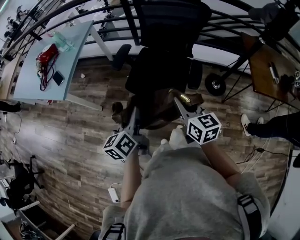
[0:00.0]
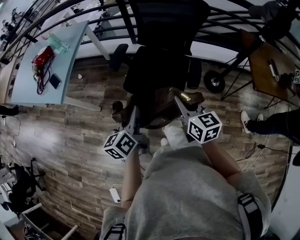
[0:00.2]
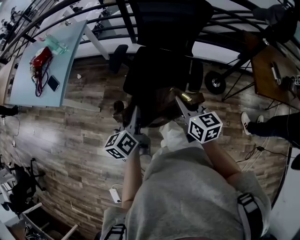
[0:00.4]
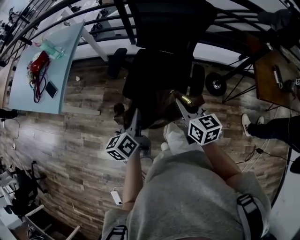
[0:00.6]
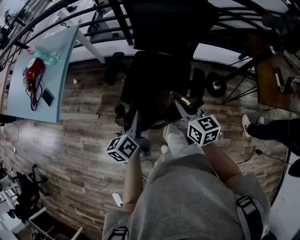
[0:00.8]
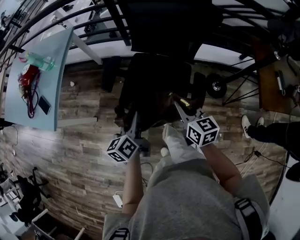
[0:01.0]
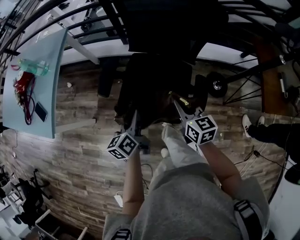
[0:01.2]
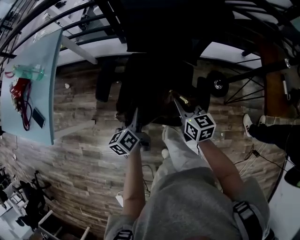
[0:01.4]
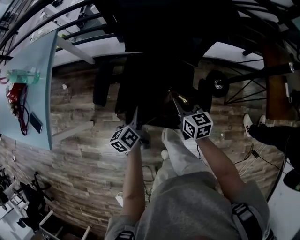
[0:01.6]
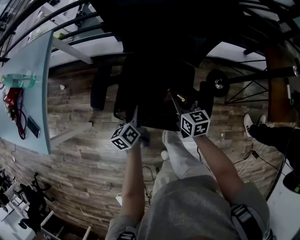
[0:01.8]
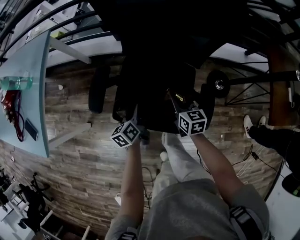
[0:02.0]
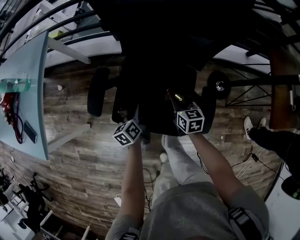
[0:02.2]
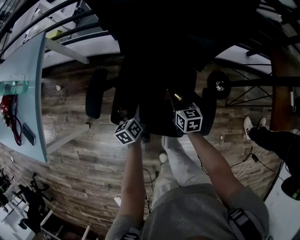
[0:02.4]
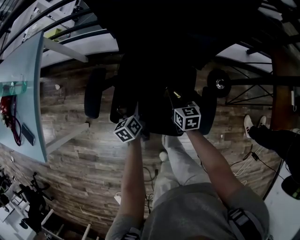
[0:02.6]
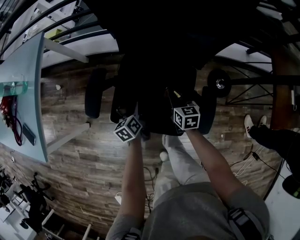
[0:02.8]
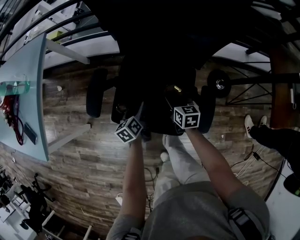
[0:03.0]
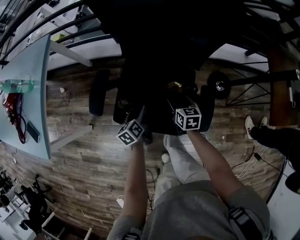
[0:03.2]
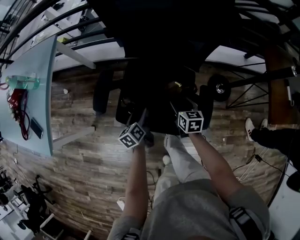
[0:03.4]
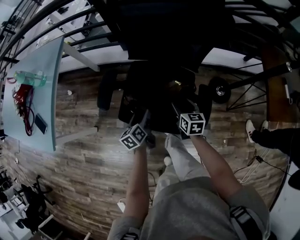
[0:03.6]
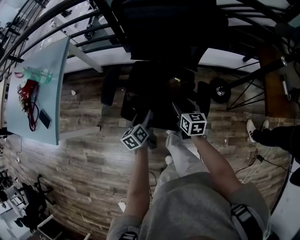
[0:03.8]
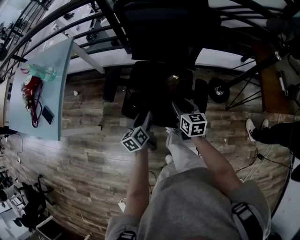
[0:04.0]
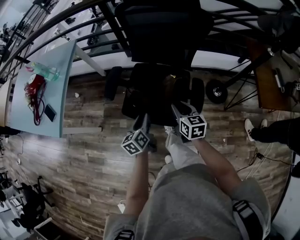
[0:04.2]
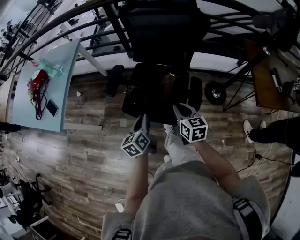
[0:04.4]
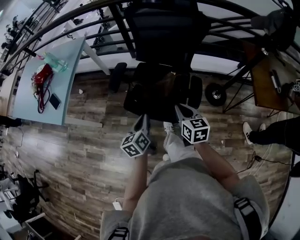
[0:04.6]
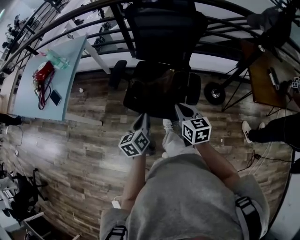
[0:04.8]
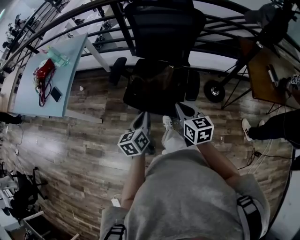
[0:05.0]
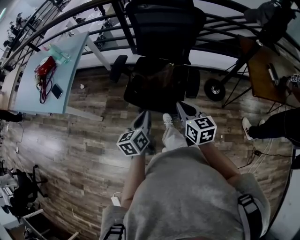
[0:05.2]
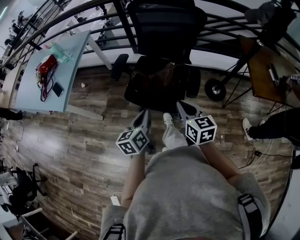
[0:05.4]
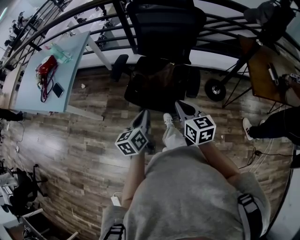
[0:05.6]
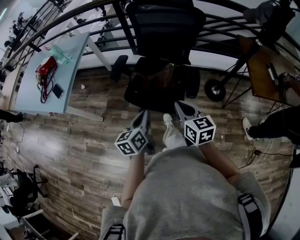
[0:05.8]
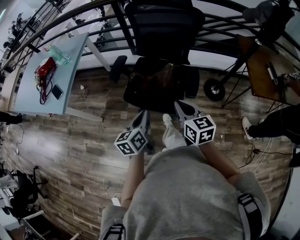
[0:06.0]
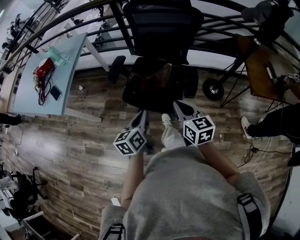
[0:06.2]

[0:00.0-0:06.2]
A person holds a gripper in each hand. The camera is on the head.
0:00.0 to 0:01.6: Both grippers travel together forward and downward, some 35 cm.
0:01.6 to 0:03.2: Both grippers move downward, approximately 10 cm. The left gripper opens. Meanwhile the right gripper opens.
0:03.2 to 0:04.6: The two grippers go some 30 cm upward and backward. The left gripper closes. Meanwhile the right gripper closes its fingers.
0:04.6 to 0:06.2: The two grippers go some 10 cm backward and upward.

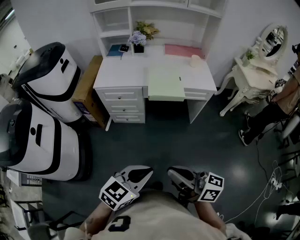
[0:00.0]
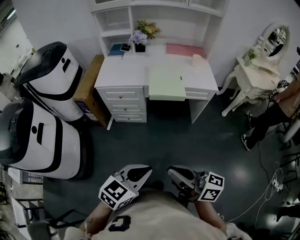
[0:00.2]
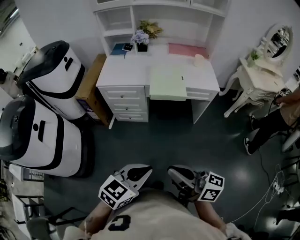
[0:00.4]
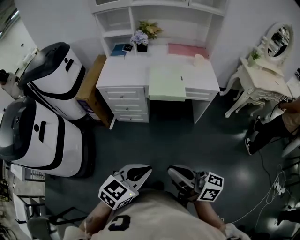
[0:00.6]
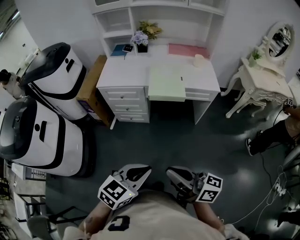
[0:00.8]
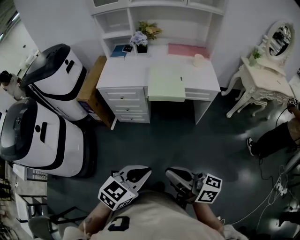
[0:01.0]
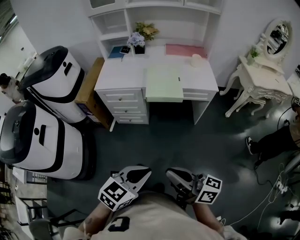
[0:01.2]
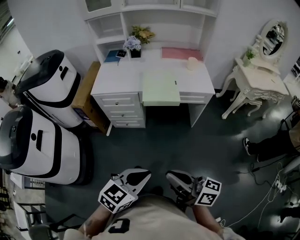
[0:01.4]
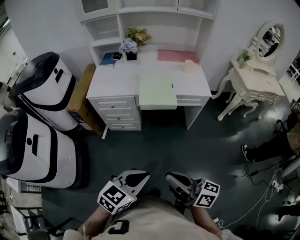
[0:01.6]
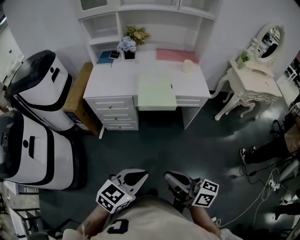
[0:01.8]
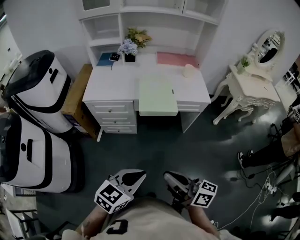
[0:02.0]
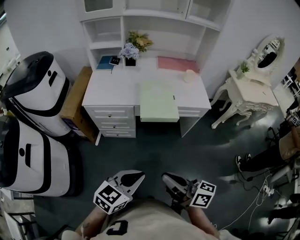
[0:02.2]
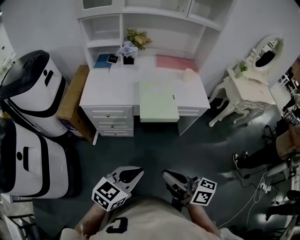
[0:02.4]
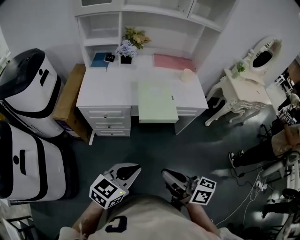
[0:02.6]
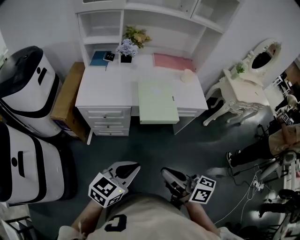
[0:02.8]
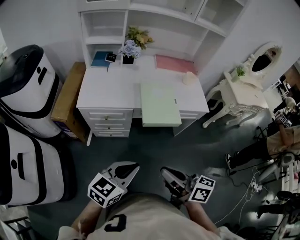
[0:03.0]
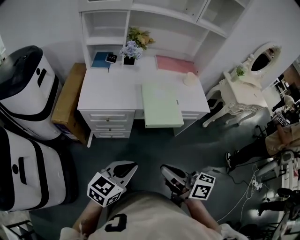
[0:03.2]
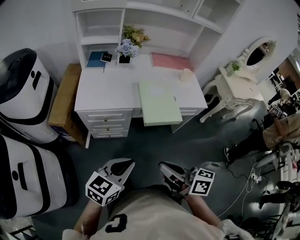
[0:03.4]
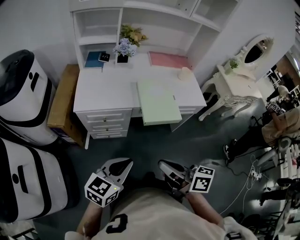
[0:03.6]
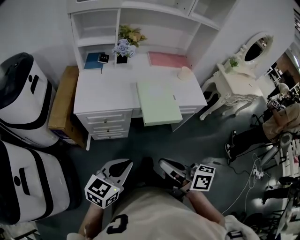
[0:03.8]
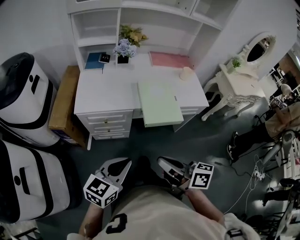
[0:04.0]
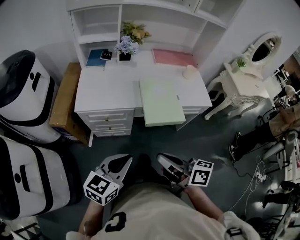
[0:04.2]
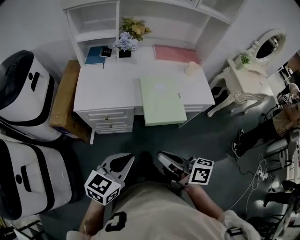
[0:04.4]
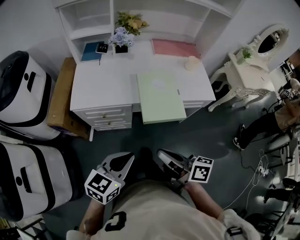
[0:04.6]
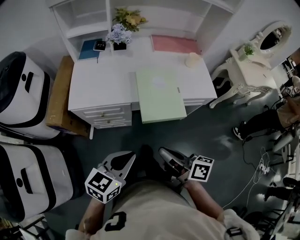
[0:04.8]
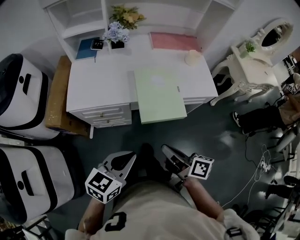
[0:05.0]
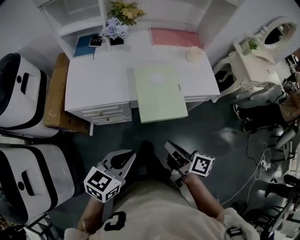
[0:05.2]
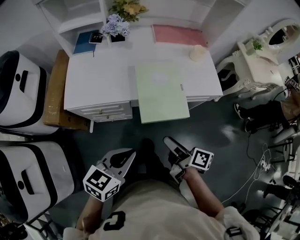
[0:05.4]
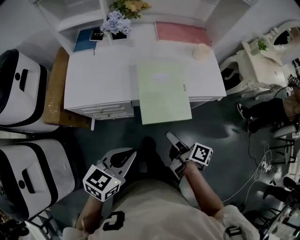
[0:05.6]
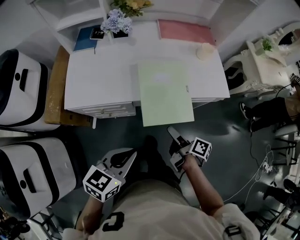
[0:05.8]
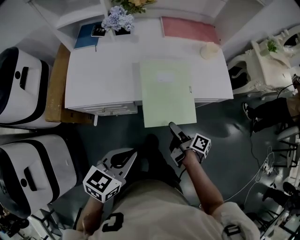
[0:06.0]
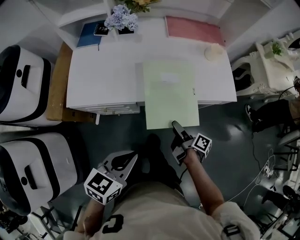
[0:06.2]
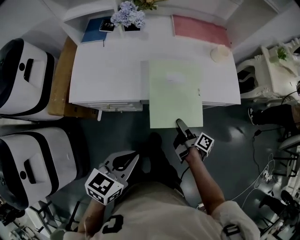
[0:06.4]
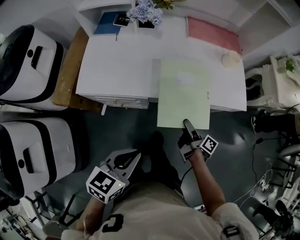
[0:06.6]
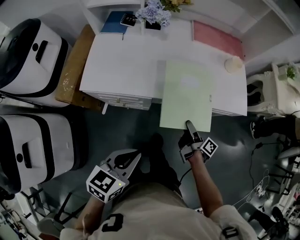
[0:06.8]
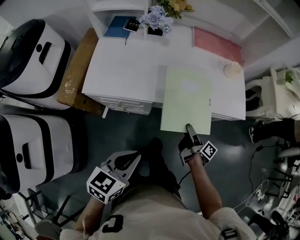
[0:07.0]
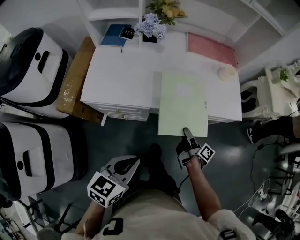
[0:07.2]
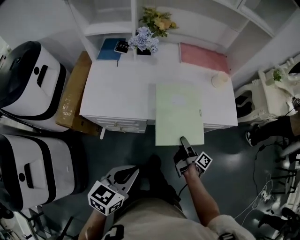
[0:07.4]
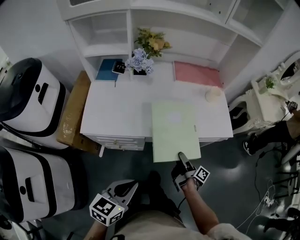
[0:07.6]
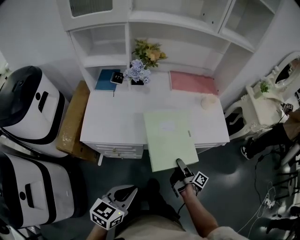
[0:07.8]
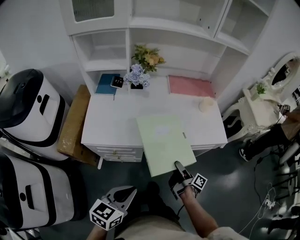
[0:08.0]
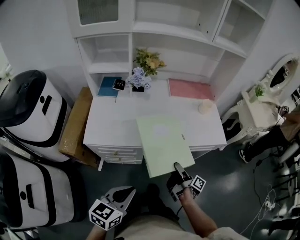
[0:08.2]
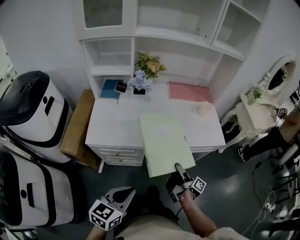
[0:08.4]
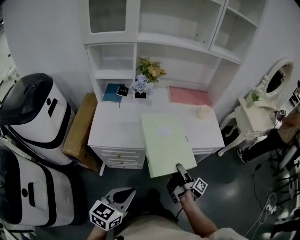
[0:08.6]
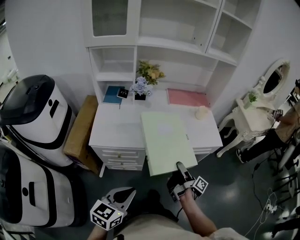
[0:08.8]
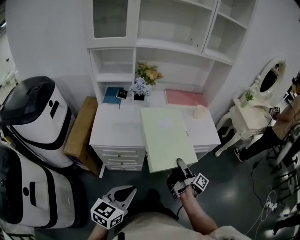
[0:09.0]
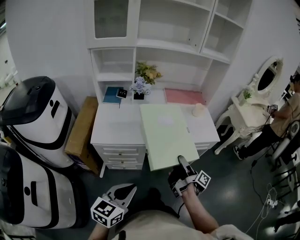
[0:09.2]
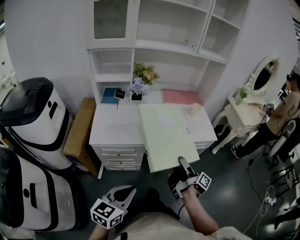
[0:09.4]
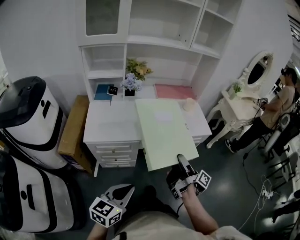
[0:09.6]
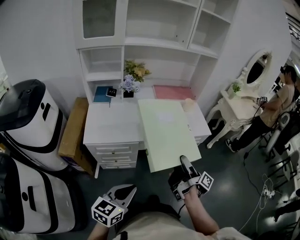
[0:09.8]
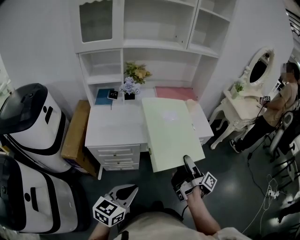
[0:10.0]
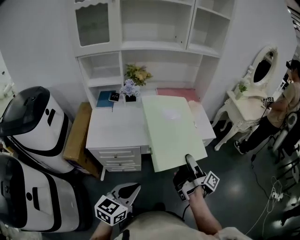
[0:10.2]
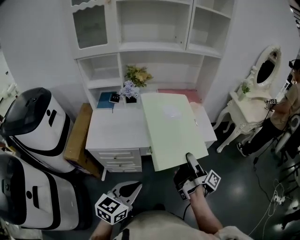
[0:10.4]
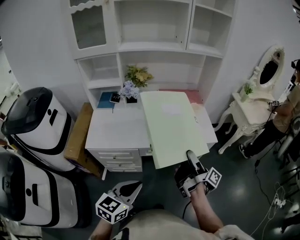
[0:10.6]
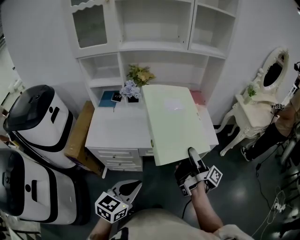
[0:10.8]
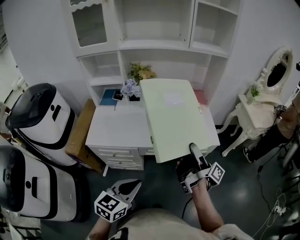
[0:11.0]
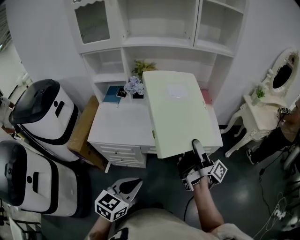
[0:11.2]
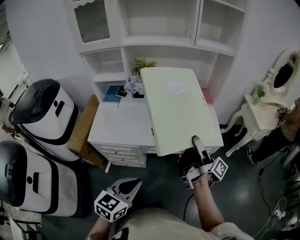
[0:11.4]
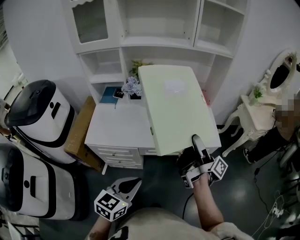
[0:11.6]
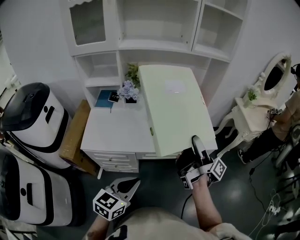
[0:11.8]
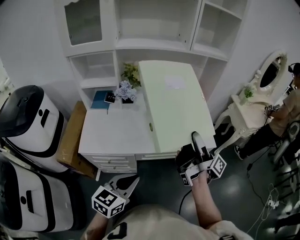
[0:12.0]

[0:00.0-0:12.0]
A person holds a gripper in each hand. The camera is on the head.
0:00.0 to 0:01.6: The right gripper shifts by about 5 cm. Meanwhile the left gripper changes place by roughly 5 cm.
0:01.6 to 0:03.0: Both grippers travel together forward and to the left, roughly 20 cm.
0:03.0 to 0:04.4: Both grippers travel together forward, about 10 cm.
0:04.4 to 0:06.0: The right gripper heads downward, forward and to the right, covering approximately 30 cm, turns by about 40 degrees, and opens its fingers; the left gripper moves forward, about 10 cm.
0:06.0 to 0:07.6: The grippers make only small movements.
0:07.6 to 0:09.0: The right gripper moves upward and backward, roughly 15 cm, while the left gripper is displaced backward and upward by approximately 10 cm.
0:09.0 to 0:10.4: The left gripper is displaced to the right by approximately 5 cm; the right gripper travels upward and to the right by about 10 cm.
0:10.4 to 0:12.0: The left gripper goes roughly 10 cm forward. Meanwhile the right gripper goes some 15 cm forward and upward.

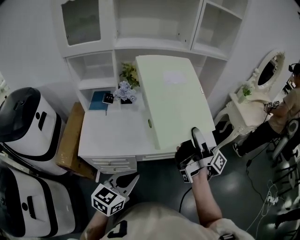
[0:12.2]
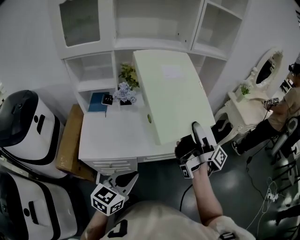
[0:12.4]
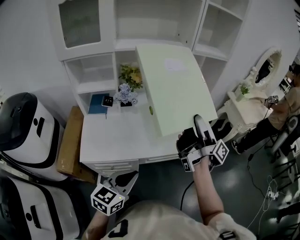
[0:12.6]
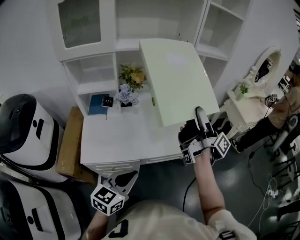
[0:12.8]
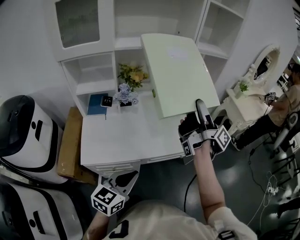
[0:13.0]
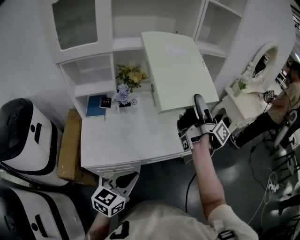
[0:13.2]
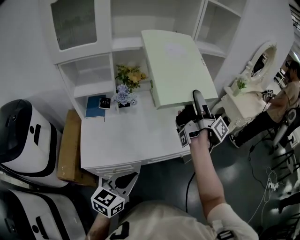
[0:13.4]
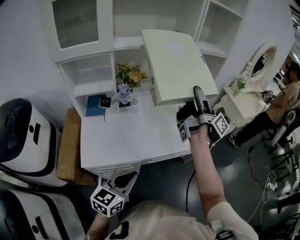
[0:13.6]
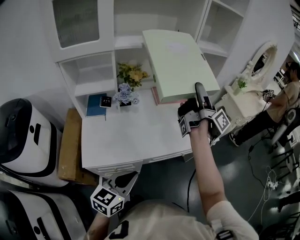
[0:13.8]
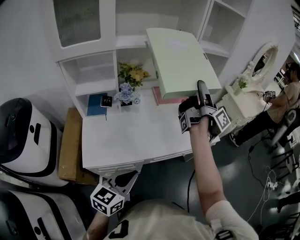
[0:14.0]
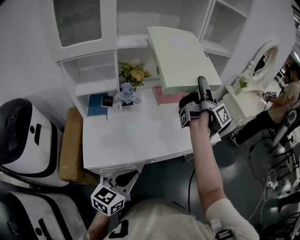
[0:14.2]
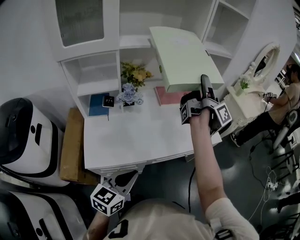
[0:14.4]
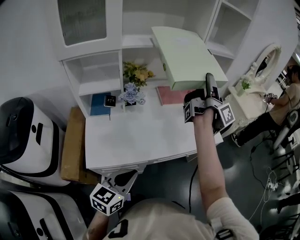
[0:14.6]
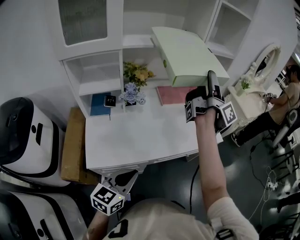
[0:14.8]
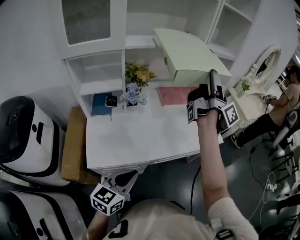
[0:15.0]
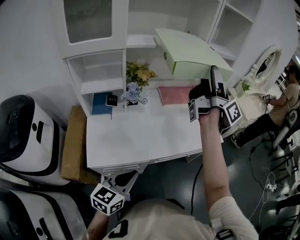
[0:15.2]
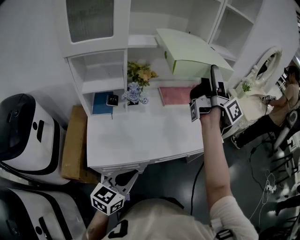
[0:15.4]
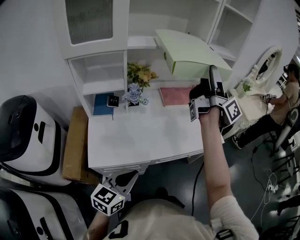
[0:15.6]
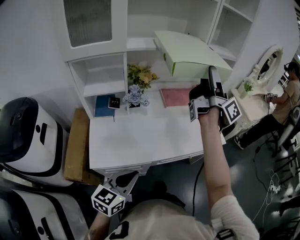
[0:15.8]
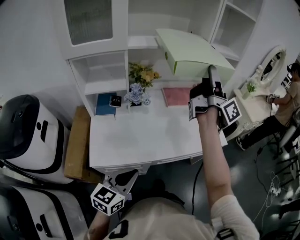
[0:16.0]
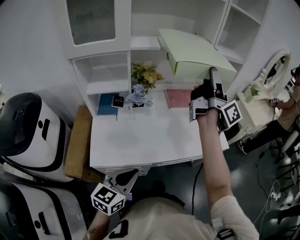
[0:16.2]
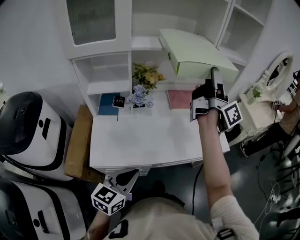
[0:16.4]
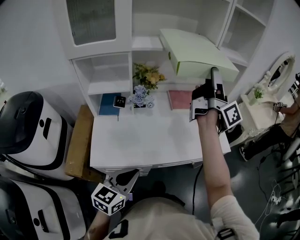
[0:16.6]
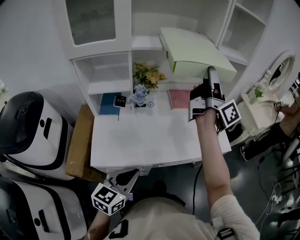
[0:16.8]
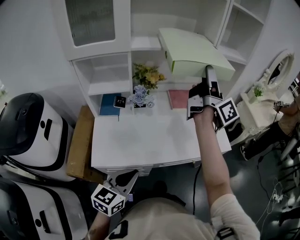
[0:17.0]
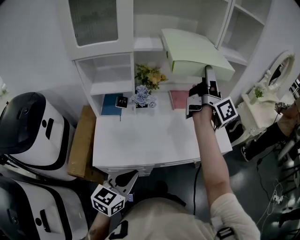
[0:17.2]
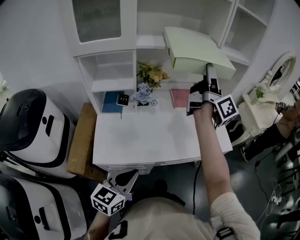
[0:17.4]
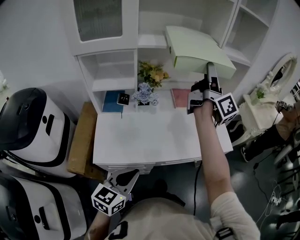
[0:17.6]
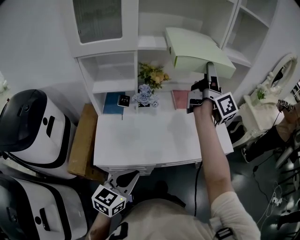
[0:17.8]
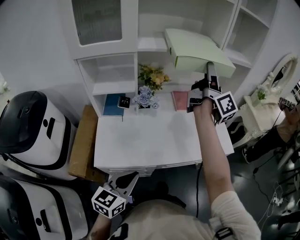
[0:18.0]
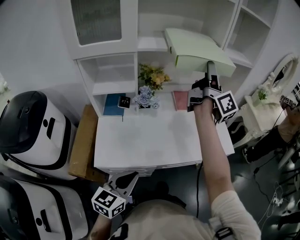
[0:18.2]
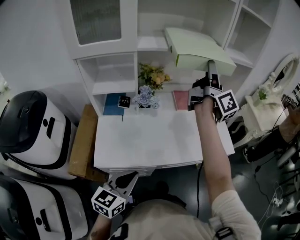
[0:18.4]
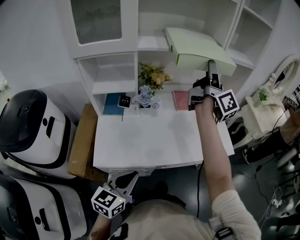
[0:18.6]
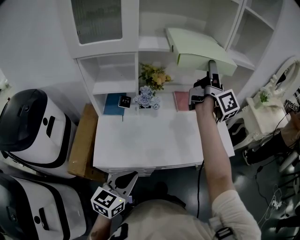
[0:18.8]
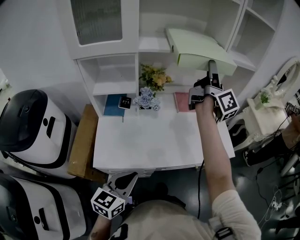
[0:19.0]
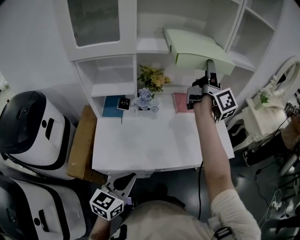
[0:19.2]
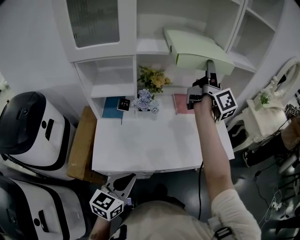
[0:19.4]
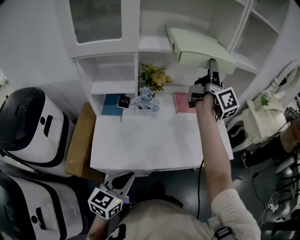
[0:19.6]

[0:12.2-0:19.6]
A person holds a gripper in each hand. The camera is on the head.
0:12.2 to 0:13.6: The left gripper shifts approximately 10 cm to the left, while the right gripper is displaced forward, upward and to the left by some 15 cm.
0:13.6 to 0:15.2: The right gripper moves upward, approximately 10 cm.
0:15.2 to 0:16.6: The grippers stay close to where they were, moving slightly.
0:16.6 to 0:18.2: The grippers move only a little.
0:18.2 to 0:19.6: The right gripper goes approximately 5 cm forward.
